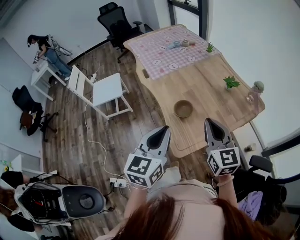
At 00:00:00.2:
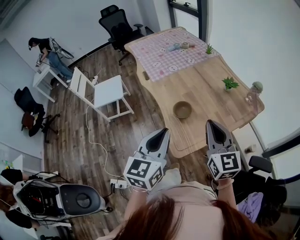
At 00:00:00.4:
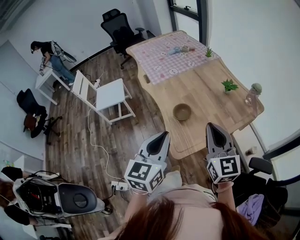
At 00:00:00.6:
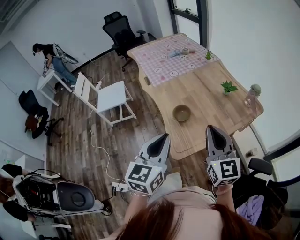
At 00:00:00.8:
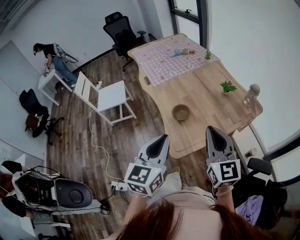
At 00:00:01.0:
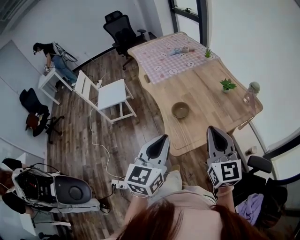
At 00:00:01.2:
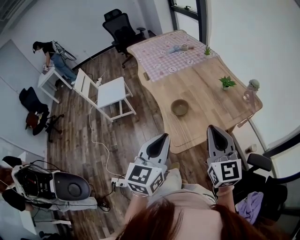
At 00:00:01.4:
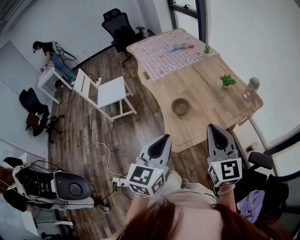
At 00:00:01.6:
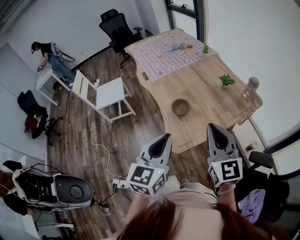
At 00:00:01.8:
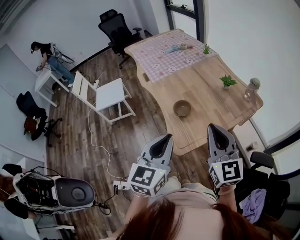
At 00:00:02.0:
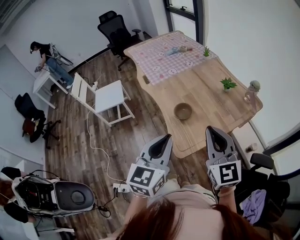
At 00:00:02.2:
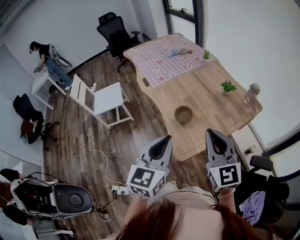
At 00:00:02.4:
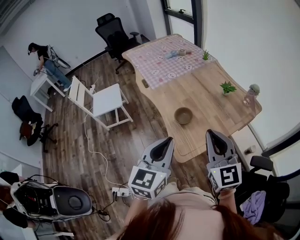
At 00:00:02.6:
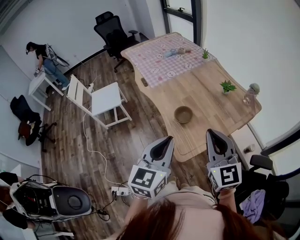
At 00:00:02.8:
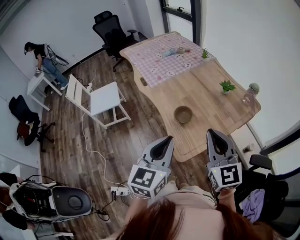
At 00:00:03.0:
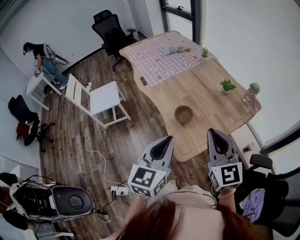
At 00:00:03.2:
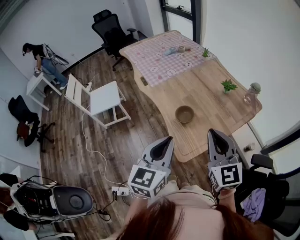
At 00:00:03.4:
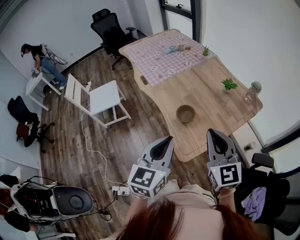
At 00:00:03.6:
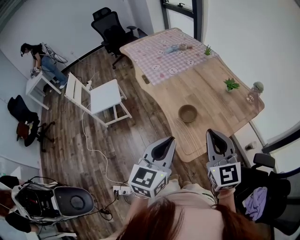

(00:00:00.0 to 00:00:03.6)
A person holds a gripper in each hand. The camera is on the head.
00:00:00.0 - 00:00:01.8: The two grippers go about 5 cm backward.
00:00:01.8 - 00:00:03.6: The grippers both shift to the left by approximately 5 cm.

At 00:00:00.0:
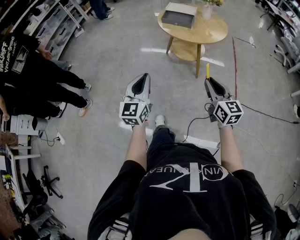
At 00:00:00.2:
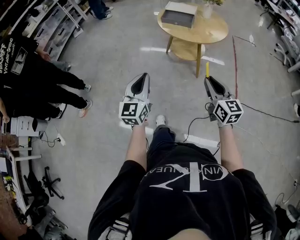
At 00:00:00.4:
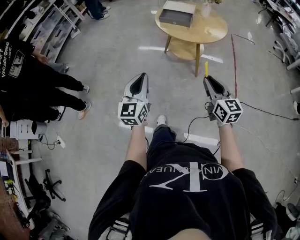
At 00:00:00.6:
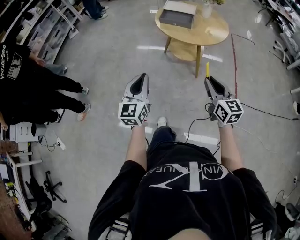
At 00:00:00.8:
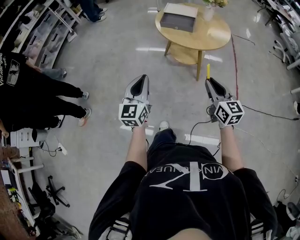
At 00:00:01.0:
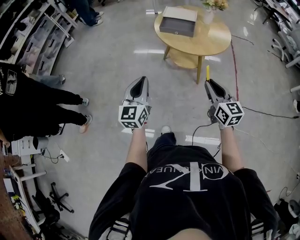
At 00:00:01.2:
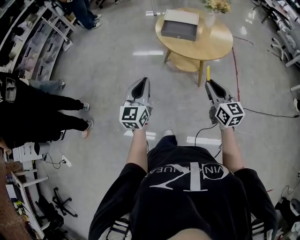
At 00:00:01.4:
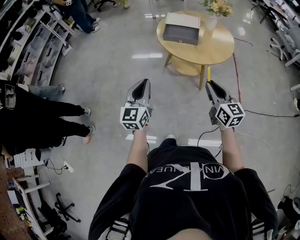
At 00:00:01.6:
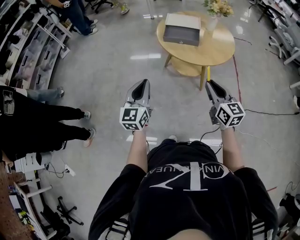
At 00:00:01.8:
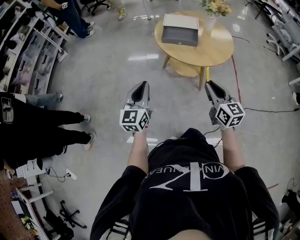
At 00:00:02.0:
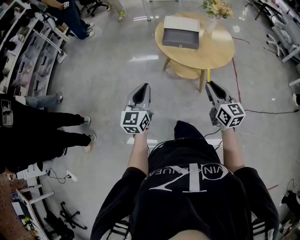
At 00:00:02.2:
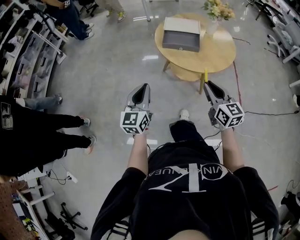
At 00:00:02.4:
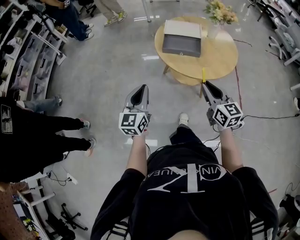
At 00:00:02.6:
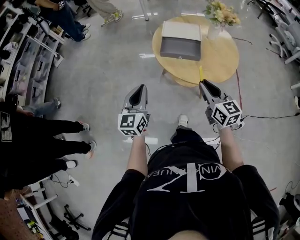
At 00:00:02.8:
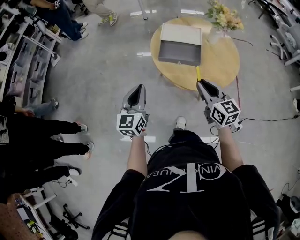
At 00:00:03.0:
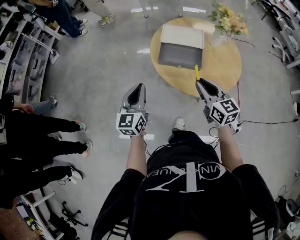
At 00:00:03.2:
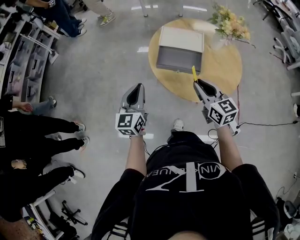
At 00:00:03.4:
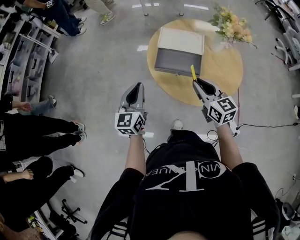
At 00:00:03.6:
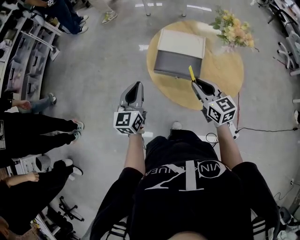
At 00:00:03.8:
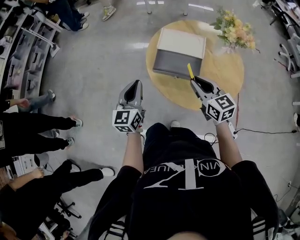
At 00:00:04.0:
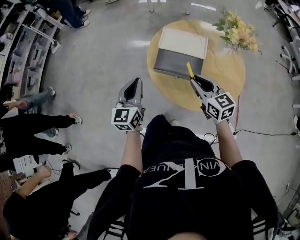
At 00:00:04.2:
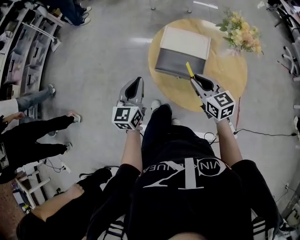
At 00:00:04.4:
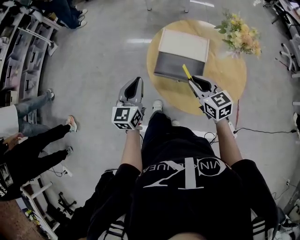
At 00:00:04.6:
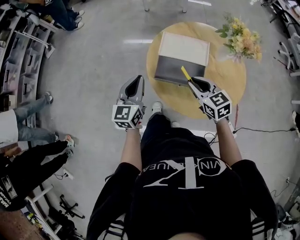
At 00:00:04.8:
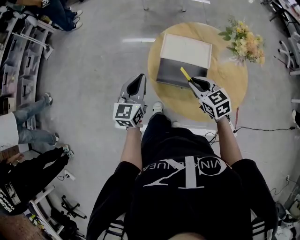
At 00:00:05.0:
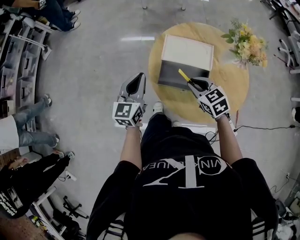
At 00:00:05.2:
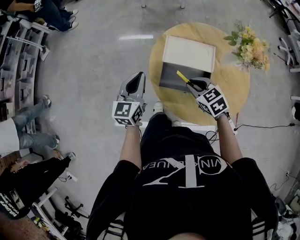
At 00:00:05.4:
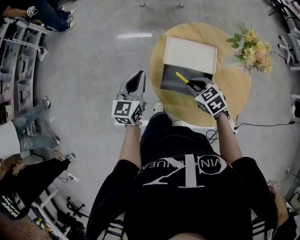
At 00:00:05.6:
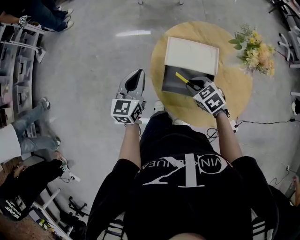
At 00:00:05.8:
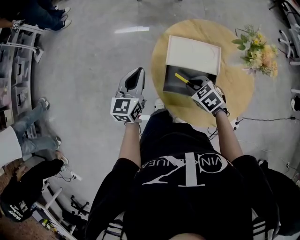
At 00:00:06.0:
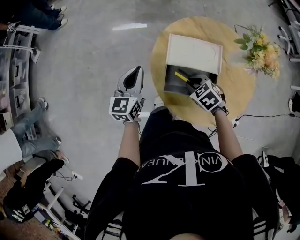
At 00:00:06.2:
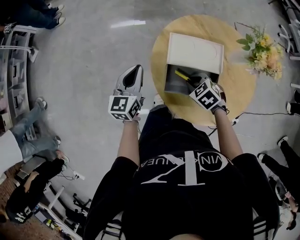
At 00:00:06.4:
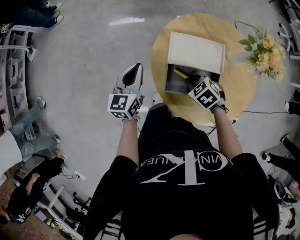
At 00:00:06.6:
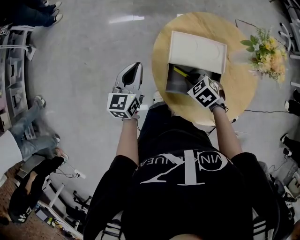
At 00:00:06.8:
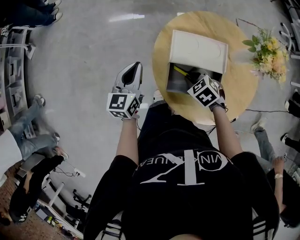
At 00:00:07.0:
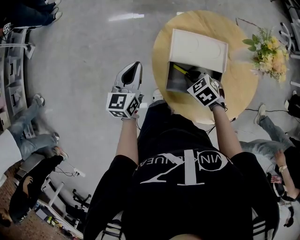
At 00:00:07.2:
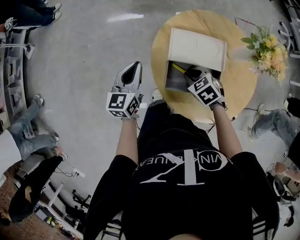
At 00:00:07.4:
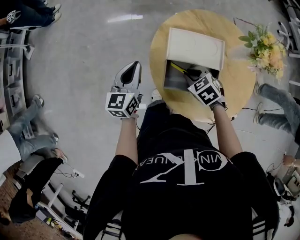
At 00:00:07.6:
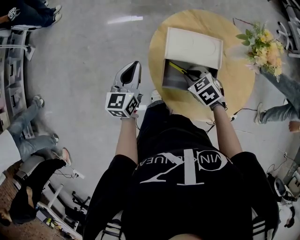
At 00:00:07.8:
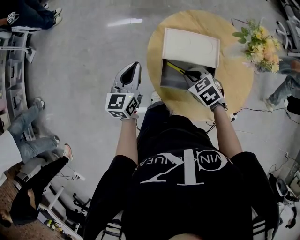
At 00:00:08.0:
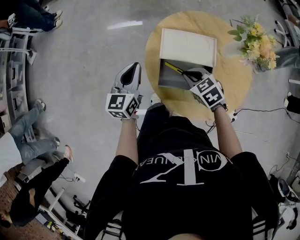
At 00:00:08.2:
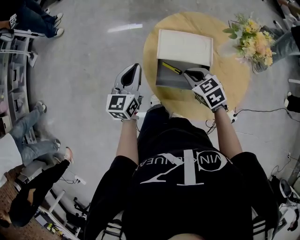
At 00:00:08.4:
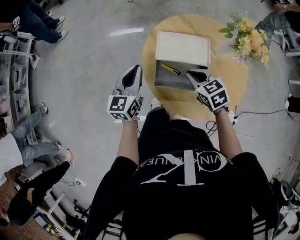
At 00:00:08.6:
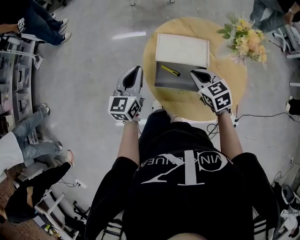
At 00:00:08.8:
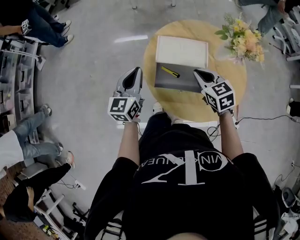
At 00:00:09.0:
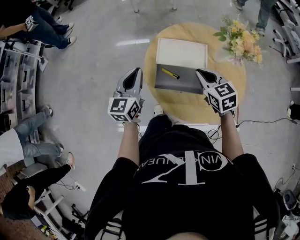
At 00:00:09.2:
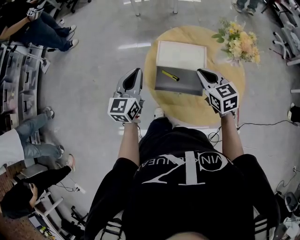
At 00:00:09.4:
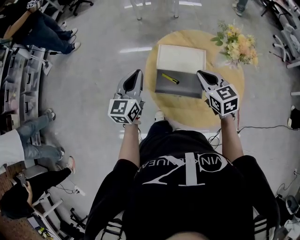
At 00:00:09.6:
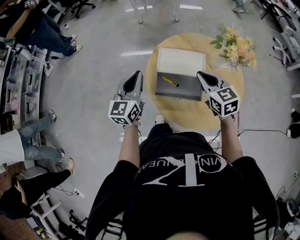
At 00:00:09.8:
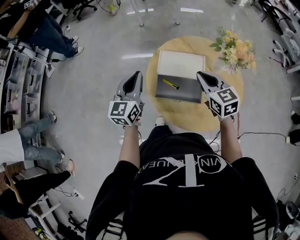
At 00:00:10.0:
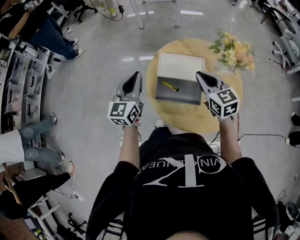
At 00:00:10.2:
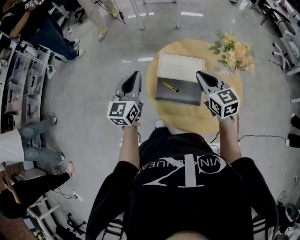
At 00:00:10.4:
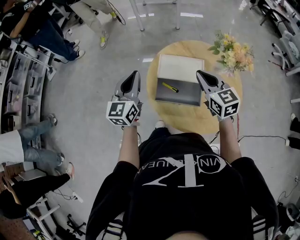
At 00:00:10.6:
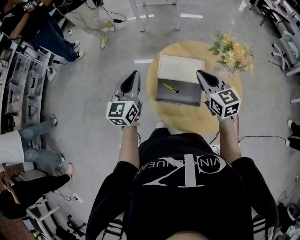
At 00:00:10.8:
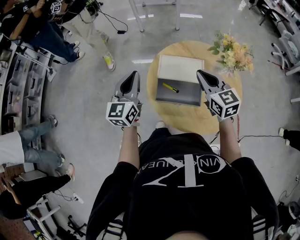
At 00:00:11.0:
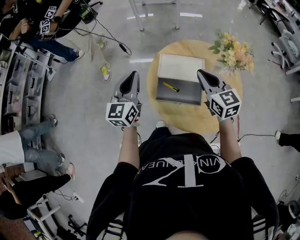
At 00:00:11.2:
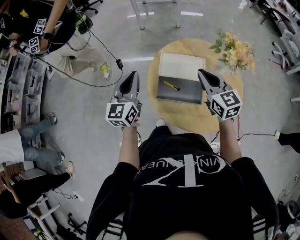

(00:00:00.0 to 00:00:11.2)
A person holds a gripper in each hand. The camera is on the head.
00:00:00.0 - 00:00:01.6: The two grippers go approximately 25 cm forward.
00:00:01.6 - 00:00:03.2: The grippers both shift forward by about 25 cm.
00:00:03.2 - 00:00:04.8: The left gripper goes about 15 cm forward. Meanwhile the right gripper moves forward and downward, roughly 15 cm, and turns by some 20 degrees.
00:00:04.8 - 00:00:06.4: The right gripper is displaced downward and forward by approximately 15 cm, and points its fingers roughly 30 degrees further downward. The left gripper travels forward and downward by approximately 15 cm.
00:00:06.4 - 00:00:08.0: The grippers move only a little.
00:00:08.0 - 00:00:09.6: The right gripper travels upward and to the right by roughly 15 cm, and swivels some 30 degrees, while the left gripper is displaced upward by approximately 10 cm.
00:00:09.6 - 00:00:11.2: The right gripper shifts by about 5 cm.

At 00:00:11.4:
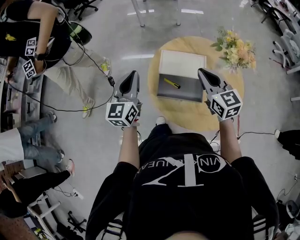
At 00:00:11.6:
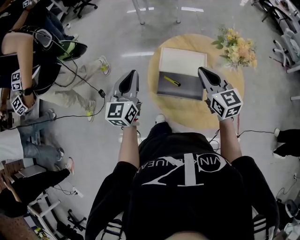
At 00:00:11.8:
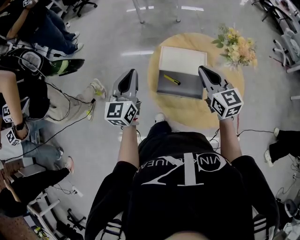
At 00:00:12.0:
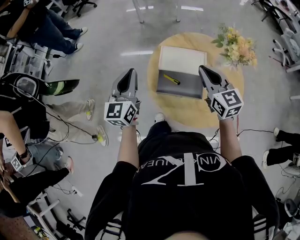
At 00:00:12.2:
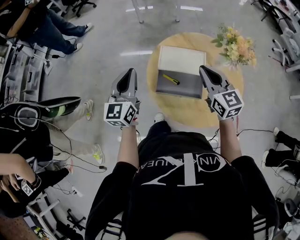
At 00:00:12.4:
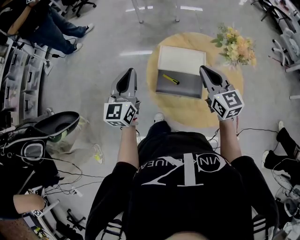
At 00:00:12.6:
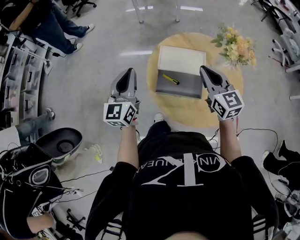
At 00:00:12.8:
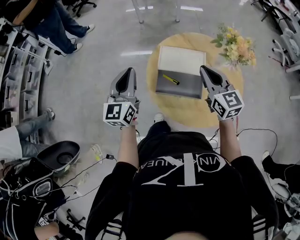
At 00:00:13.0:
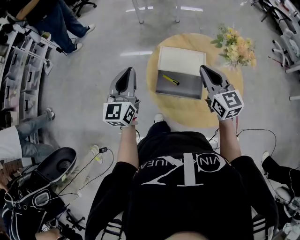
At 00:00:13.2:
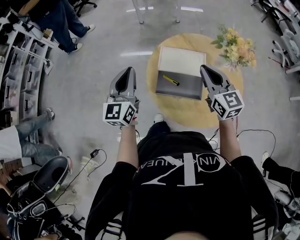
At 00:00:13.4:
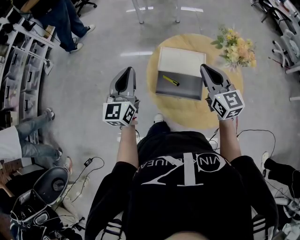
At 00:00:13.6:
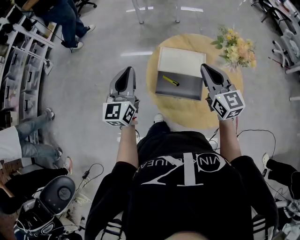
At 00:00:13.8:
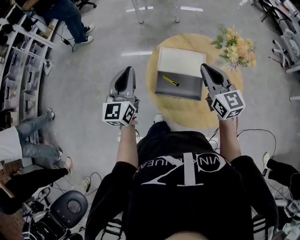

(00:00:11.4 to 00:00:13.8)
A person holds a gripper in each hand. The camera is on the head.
00:00:11.4 - 00:00:13.8: The grippers make only small movements.

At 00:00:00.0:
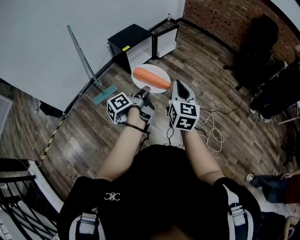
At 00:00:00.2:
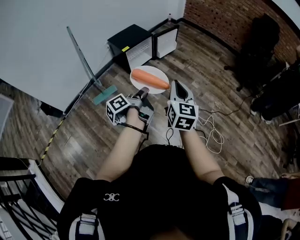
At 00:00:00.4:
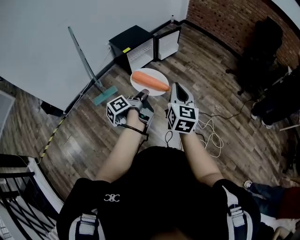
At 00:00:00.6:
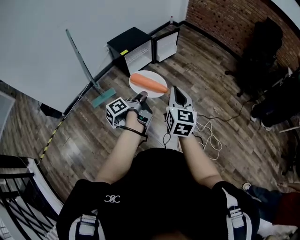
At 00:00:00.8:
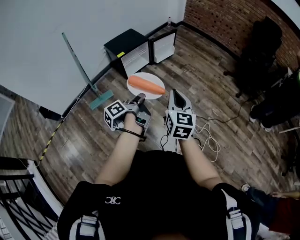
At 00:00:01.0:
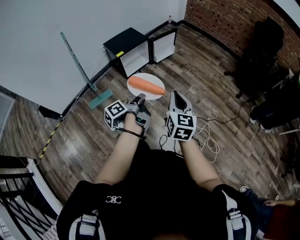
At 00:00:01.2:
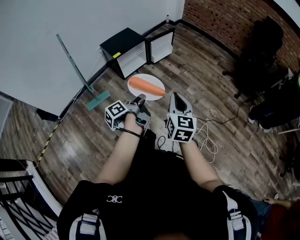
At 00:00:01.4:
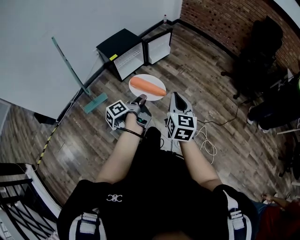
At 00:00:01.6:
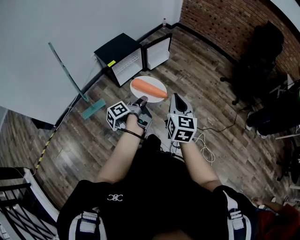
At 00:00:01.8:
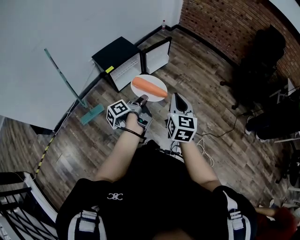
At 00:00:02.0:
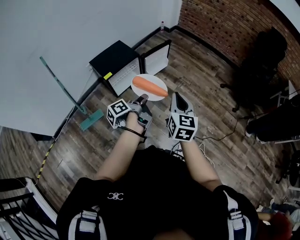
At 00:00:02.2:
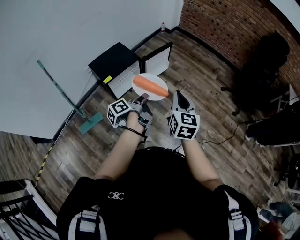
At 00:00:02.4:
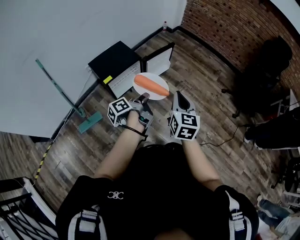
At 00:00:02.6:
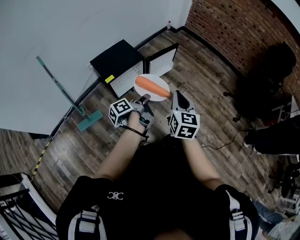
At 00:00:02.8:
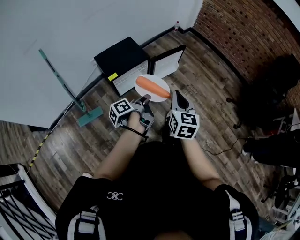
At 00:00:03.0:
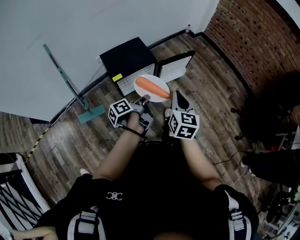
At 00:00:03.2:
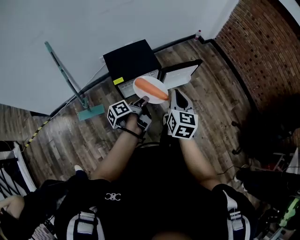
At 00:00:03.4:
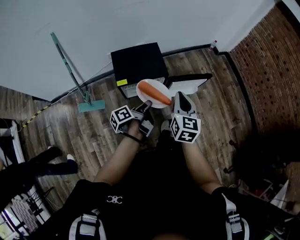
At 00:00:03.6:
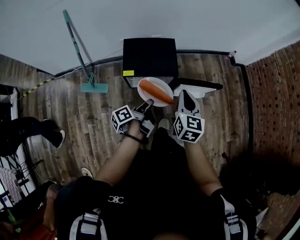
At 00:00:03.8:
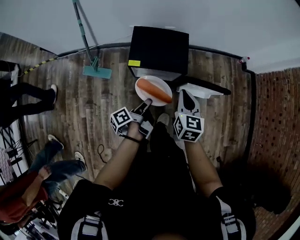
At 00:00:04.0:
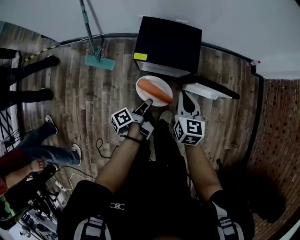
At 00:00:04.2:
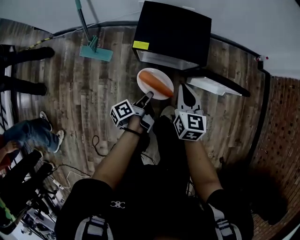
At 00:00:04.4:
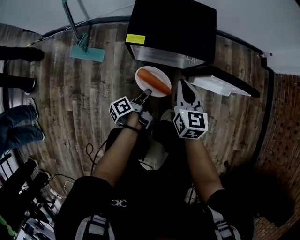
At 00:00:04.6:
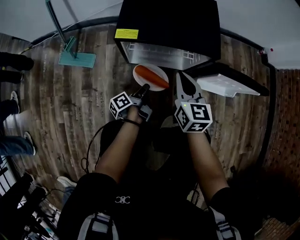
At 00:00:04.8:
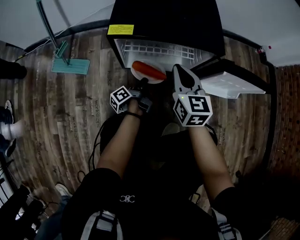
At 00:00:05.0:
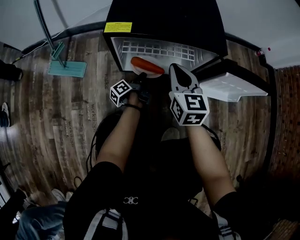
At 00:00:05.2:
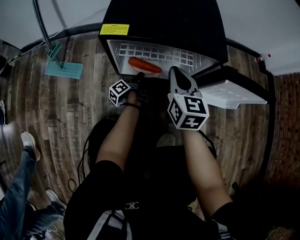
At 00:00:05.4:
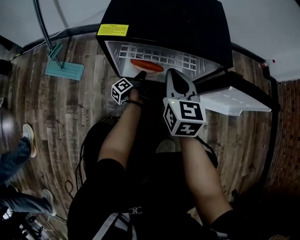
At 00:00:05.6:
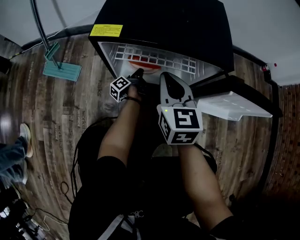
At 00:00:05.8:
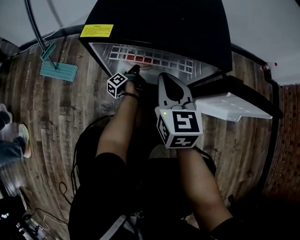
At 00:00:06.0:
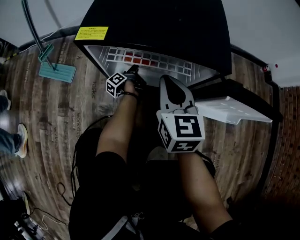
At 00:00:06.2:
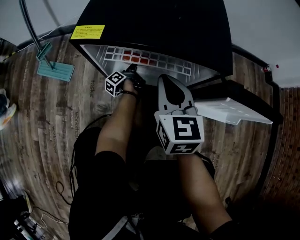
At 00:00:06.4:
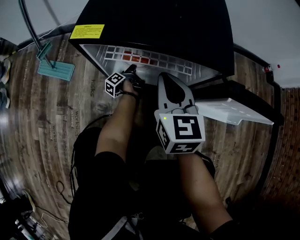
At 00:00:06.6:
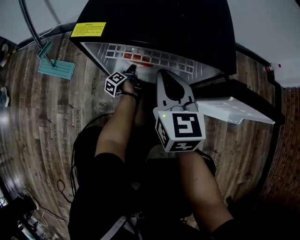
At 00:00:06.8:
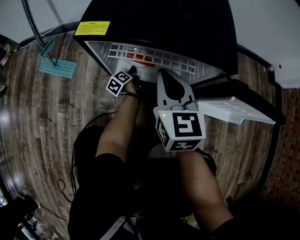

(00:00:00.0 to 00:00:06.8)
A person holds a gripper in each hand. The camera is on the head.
00:00:00.0 - 00:00:01.4: The right gripper shifts by some 20 cm.
00:00:01.4 - 00:00:02.8: The right gripper moves about 35 cm.
00:00:02.8 - 00:00:04.0: The right gripper shifts by about 35 cm, and rotates about 50 degrees.
00:00:04.0 - 00:00:05.4: The right gripper heads downward, covering about 35 cm.
